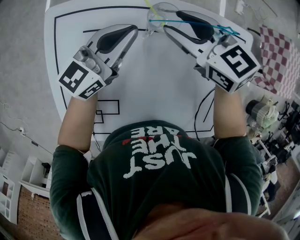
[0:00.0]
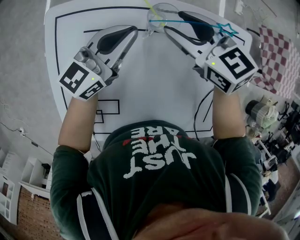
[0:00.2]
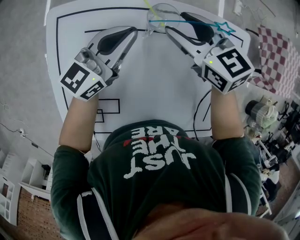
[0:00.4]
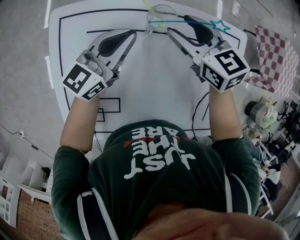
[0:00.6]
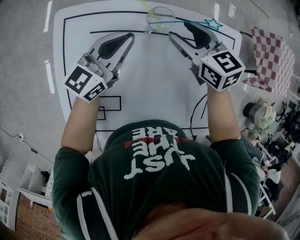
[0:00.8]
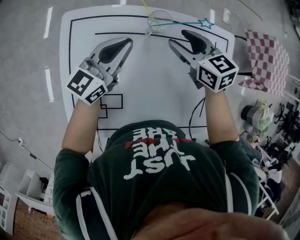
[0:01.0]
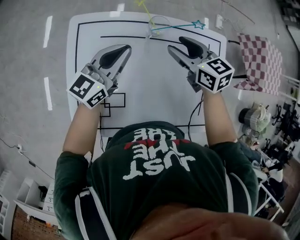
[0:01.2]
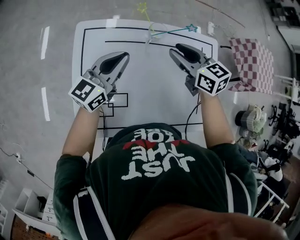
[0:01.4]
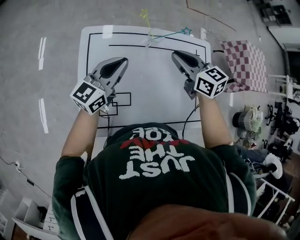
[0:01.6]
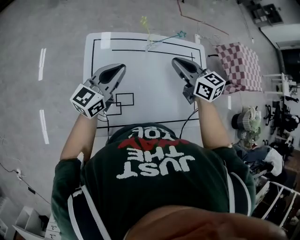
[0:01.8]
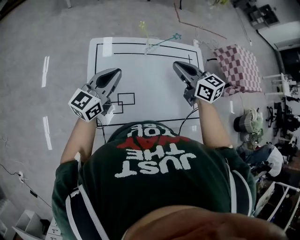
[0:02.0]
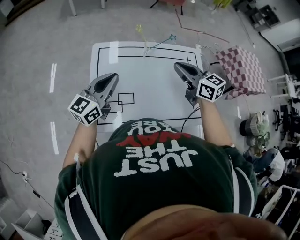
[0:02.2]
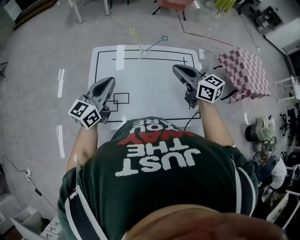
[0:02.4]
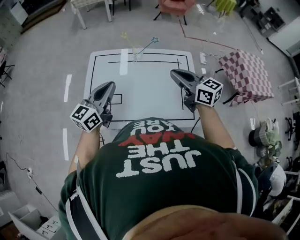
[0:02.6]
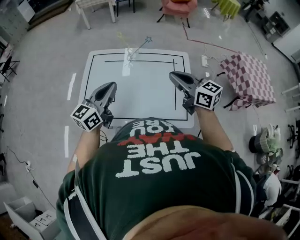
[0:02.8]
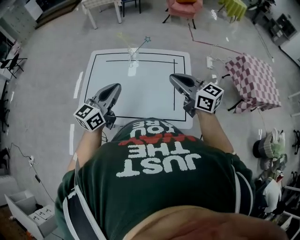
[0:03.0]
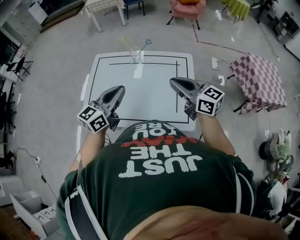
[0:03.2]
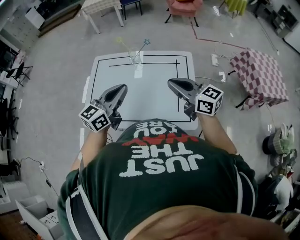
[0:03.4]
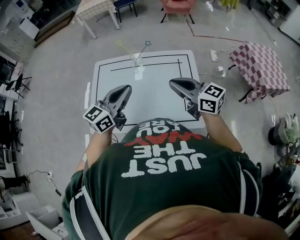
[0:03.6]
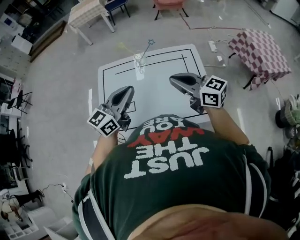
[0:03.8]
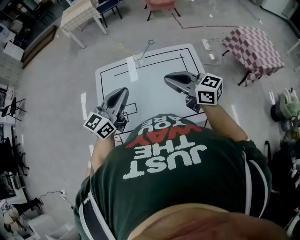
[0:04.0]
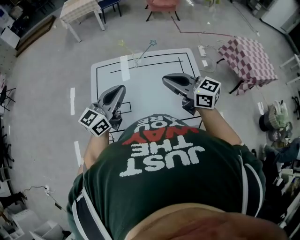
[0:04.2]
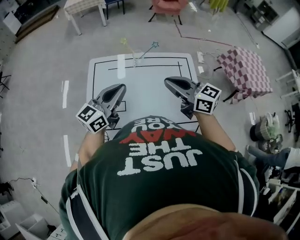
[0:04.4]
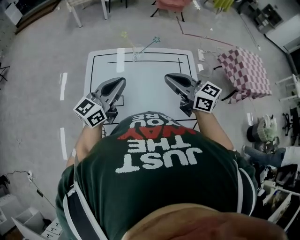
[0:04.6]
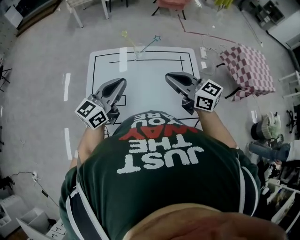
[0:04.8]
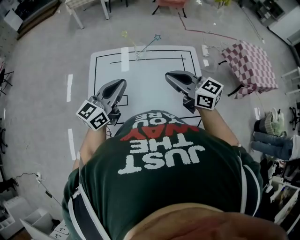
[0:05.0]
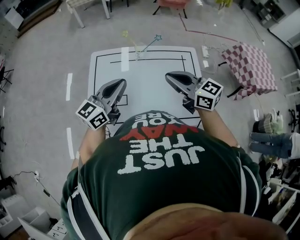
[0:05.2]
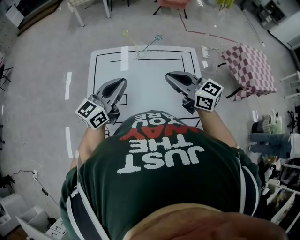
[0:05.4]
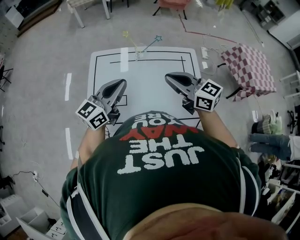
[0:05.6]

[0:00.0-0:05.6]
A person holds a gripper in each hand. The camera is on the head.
0:00.0 to 0:01.4: The right gripper is displaced backward and upward by some 15 cm. Meanwhile the left gripper travels upward, backward and to the left by approximately 15 cm.
0:01.4 to 0:02.8: The left gripper travels backward and upward by some 30 cm. The right gripper heads backward, upward and to the right, covering about 35 cm, changes its angle by about 20 degrees, and closes.
0:02.8 to 0:04.2: The right gripper shifts about 10 cm to the left, while the left gripper is displaced forward by some 5 cm.
0:04.2 to 0:05.6: There are only small adjustments of the grippers.

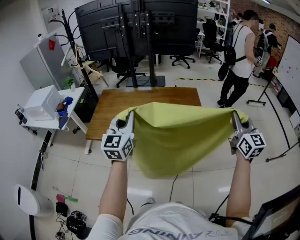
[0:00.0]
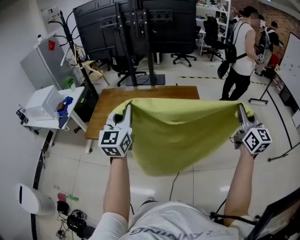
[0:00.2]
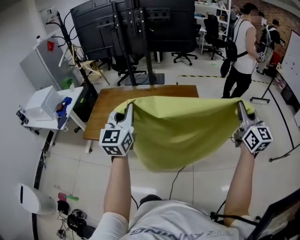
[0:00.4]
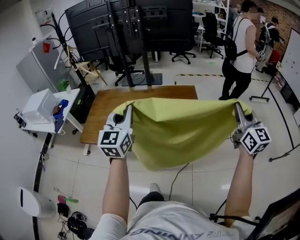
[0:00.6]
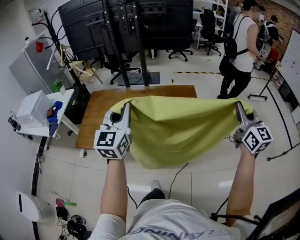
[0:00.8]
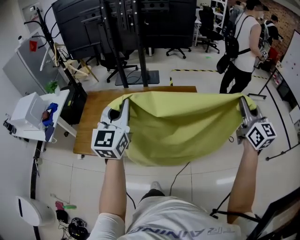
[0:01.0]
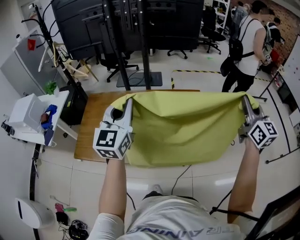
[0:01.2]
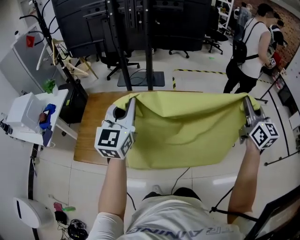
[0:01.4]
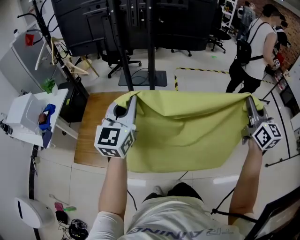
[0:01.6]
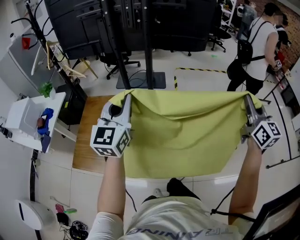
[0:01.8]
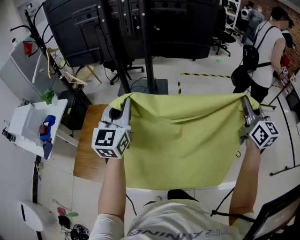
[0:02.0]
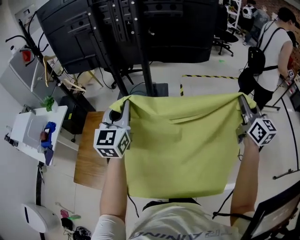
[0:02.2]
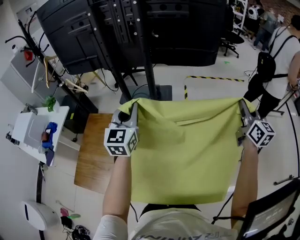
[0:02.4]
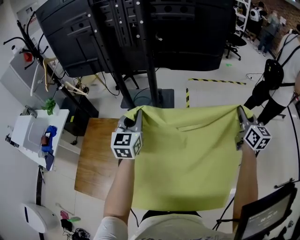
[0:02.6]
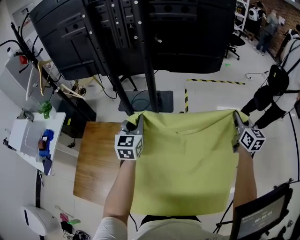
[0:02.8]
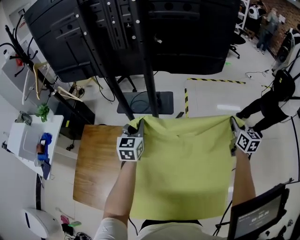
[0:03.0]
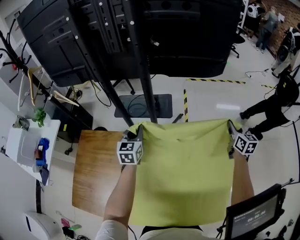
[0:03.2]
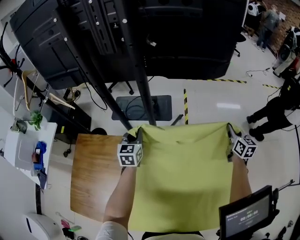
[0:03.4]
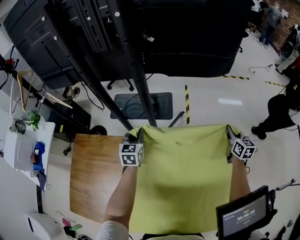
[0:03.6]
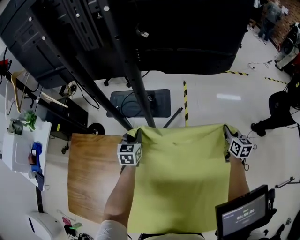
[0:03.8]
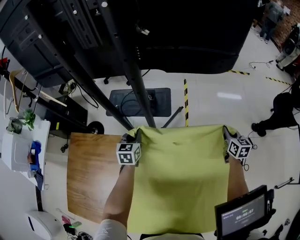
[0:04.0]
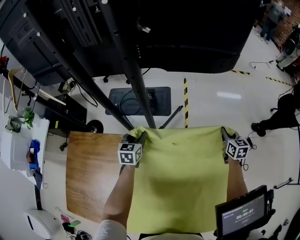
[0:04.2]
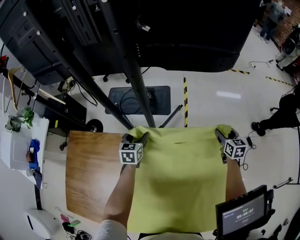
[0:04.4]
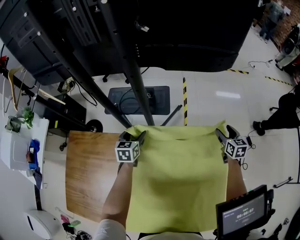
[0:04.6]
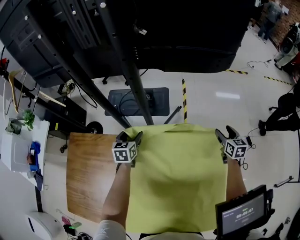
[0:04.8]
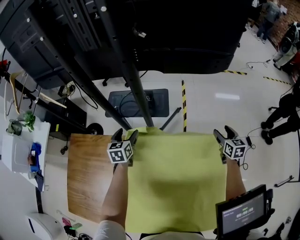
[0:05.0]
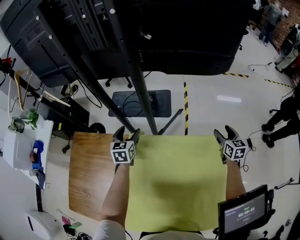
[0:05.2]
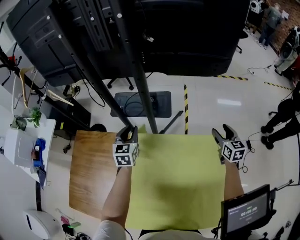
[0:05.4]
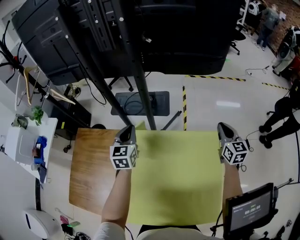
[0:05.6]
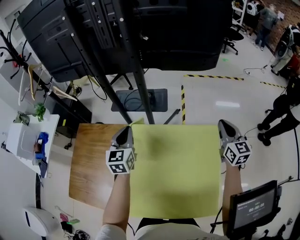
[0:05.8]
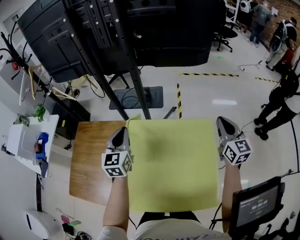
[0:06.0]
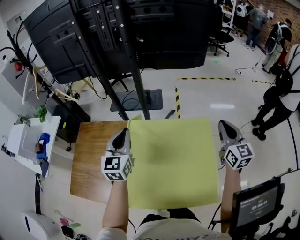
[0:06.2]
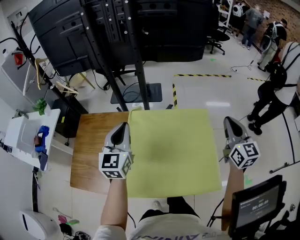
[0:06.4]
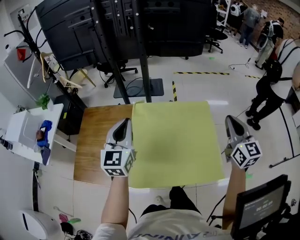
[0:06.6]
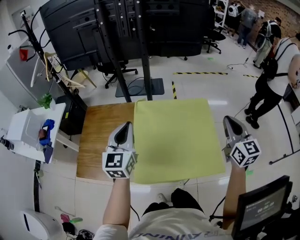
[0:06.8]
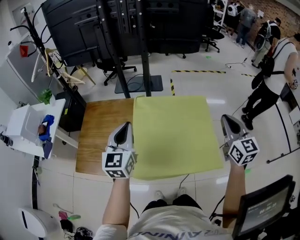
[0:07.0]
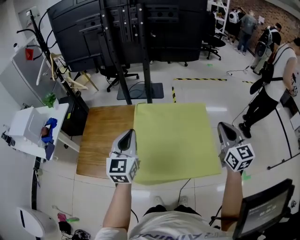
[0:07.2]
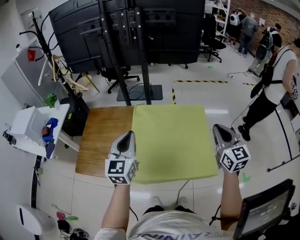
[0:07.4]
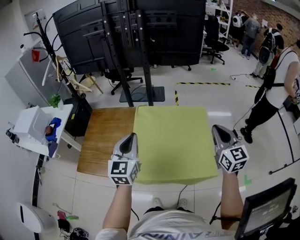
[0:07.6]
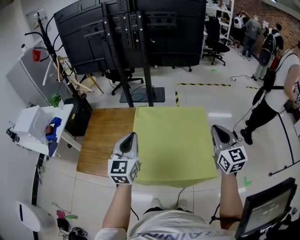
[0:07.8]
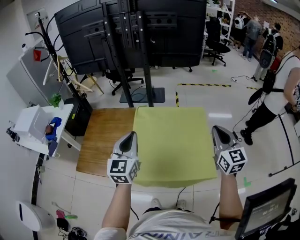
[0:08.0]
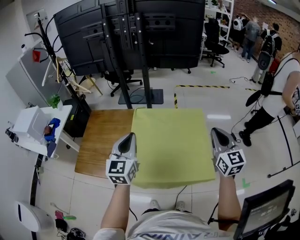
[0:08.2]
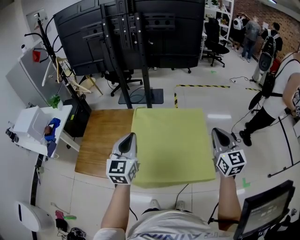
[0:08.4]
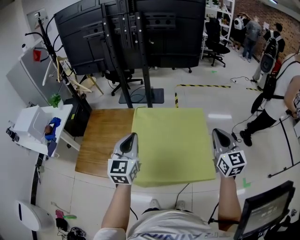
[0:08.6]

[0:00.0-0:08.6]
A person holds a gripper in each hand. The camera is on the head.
0:00.0 to 0:01.4: The two grippers go roughly 25 cm forward.
0:01.4 to 0:02.8: Both grippers travel together forward and downward, about 35 cm.
0:02.8 to 0:04.4: Both grippers move downward and forward, about 30 cm. The left gripper changes its angle by about 30 degrees, and opens up. The right gripper changes its angle by approximately 20 degrees, and opens its fingers.
0:04.4 to 0:05.8: Both grippers travel together upward and backward, roughly 25 cm. The left gripper rotates about 20 degrees, and closes, while the right gripper swivels about 20 degrees, and closes.
0:05.8 to 0:07.2: Both grippers travel together backward, about 30 cm.
0:07.2 to 0:08.6: The left gripper moves roughly 5 cm.

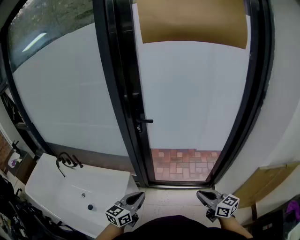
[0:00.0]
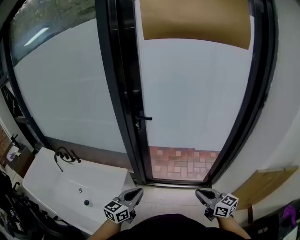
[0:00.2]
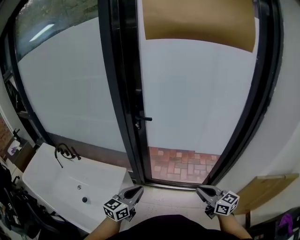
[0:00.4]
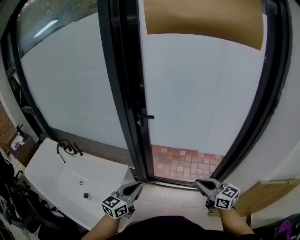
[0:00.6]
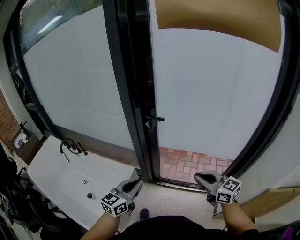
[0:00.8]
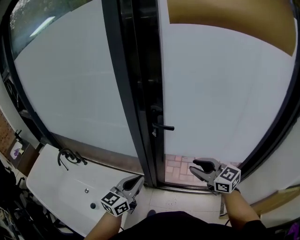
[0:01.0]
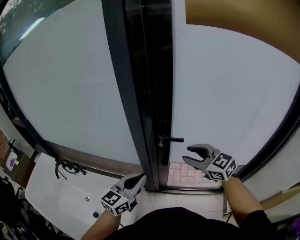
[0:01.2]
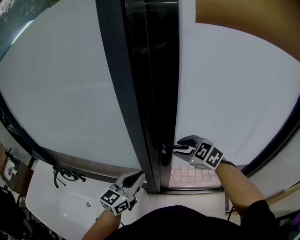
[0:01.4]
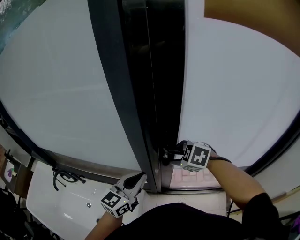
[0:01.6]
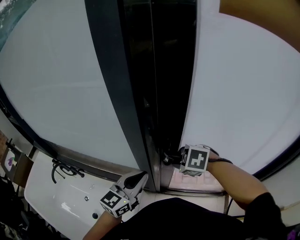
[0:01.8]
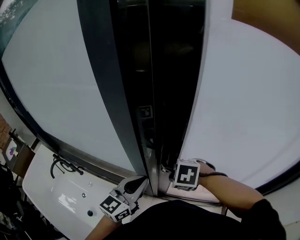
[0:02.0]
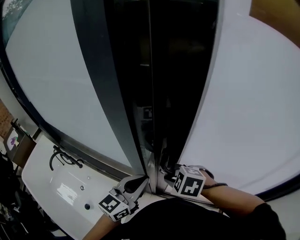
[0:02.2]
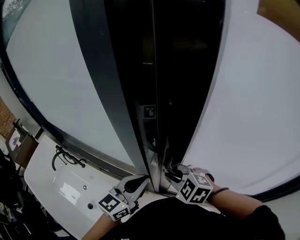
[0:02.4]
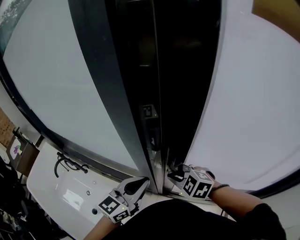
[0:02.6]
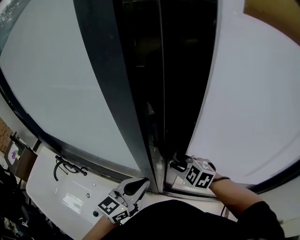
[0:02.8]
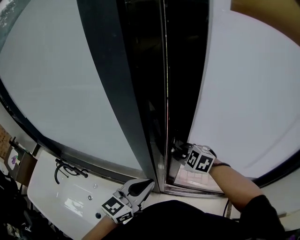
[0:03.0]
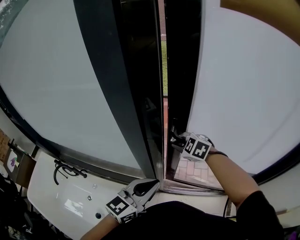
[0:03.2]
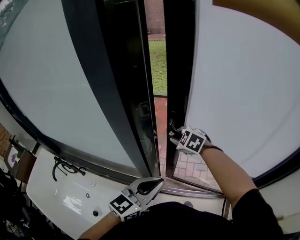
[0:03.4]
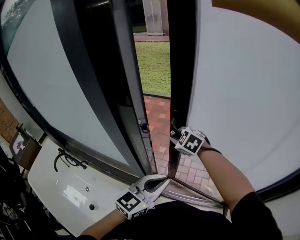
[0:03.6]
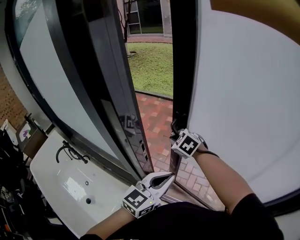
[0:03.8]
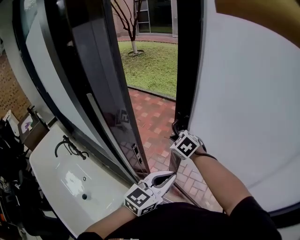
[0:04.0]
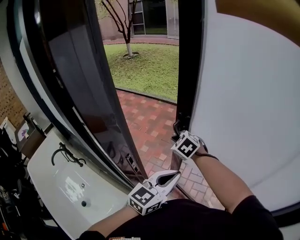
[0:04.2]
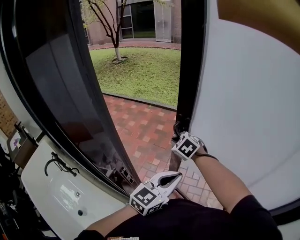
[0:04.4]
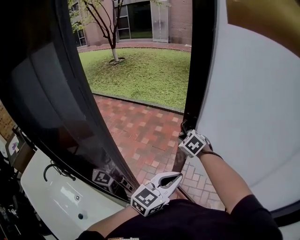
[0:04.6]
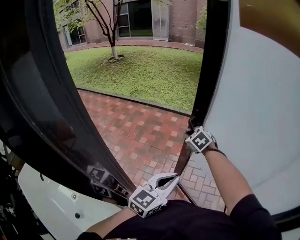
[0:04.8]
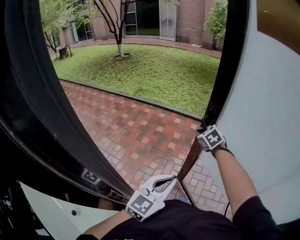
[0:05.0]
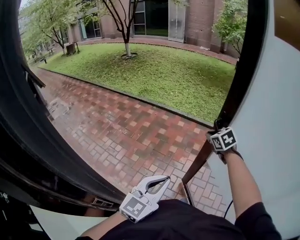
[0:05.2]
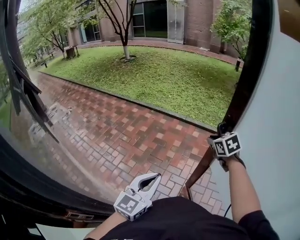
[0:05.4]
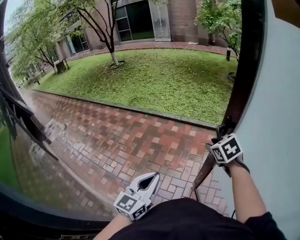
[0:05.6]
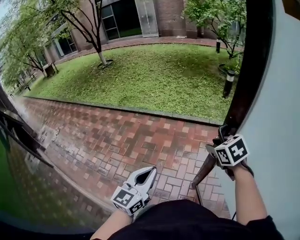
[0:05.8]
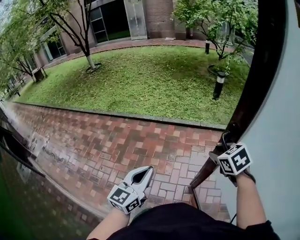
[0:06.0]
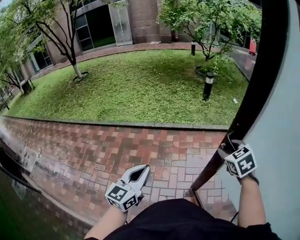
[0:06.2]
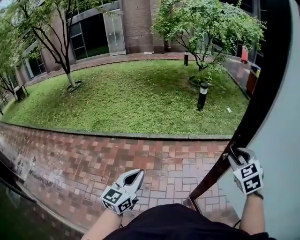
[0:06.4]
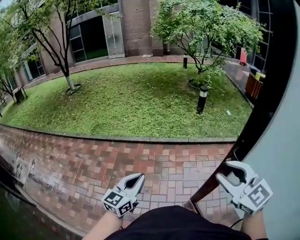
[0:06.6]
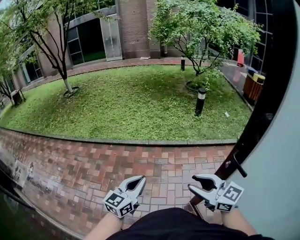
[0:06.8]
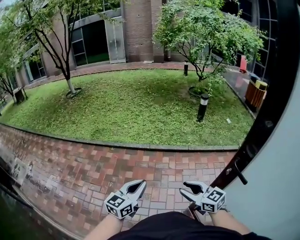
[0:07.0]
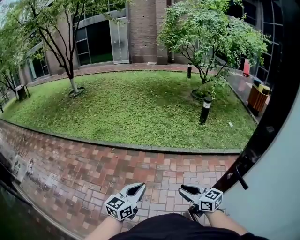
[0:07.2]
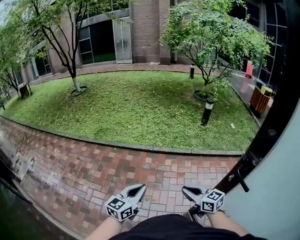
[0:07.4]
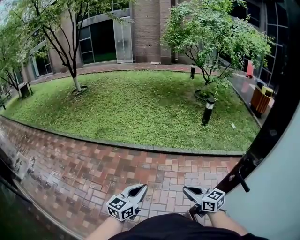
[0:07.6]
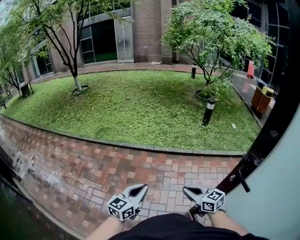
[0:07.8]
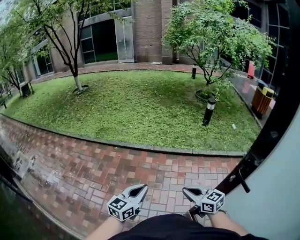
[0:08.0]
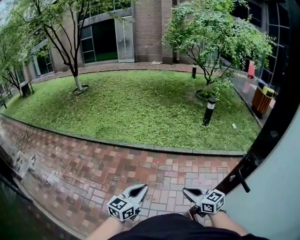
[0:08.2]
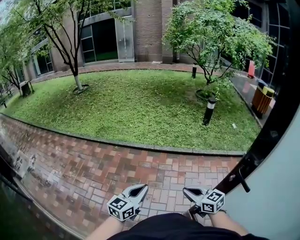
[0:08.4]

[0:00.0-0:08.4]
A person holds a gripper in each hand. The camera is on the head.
0:00.0 to 0:01.4: The left gripper moves forward, some 35 cm. Meanwhile the right gripper heads forward and to the left, covering some 50 cm, swivels roughly 50 degrees, and opens up.
0:01.4 to 0:02.8: The right gripper is displaced downward by about 5 cm, and closes.
0:02.8 to 0:04.2: The right gripper goes about 25 cm forward, while the left gripper shifts approximately 30 cm to the right and forward.
0:04.2 to 0:05.6: The right gripper travels forward and to the right by roughly 50 cm, rotates roughly 30 degrees, and opens. The left gripper moves forward, some 35 cm.
0:05.6 to 0:07.0: The left gripper moves some 30 cm, and swivels about 20 degrees. Meanwhile the right gripper travels upward and back again, about 15 cm each way, and tilts its fingers some 40 degrees upward.
0:07.0 to 0:08.4: The right gripper closes up.

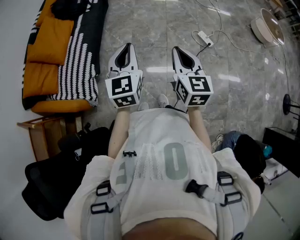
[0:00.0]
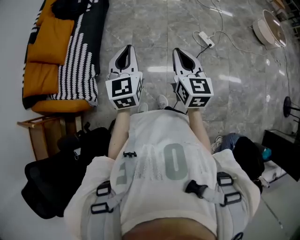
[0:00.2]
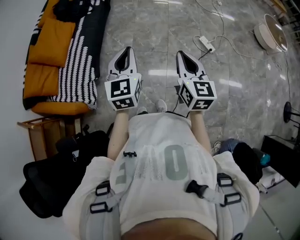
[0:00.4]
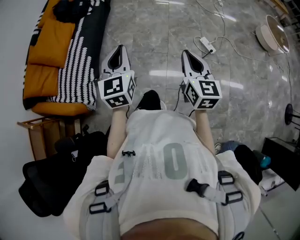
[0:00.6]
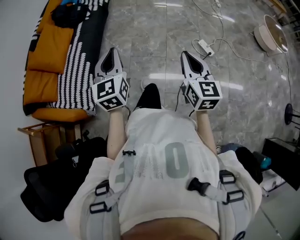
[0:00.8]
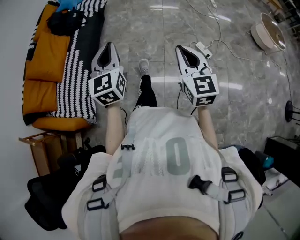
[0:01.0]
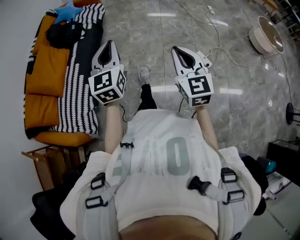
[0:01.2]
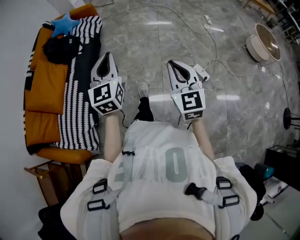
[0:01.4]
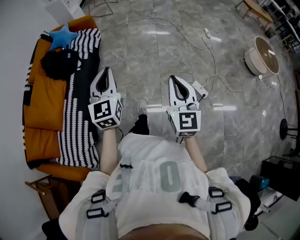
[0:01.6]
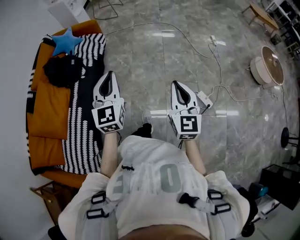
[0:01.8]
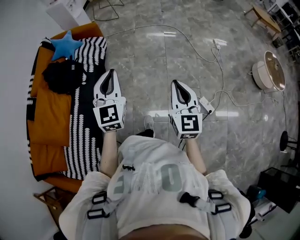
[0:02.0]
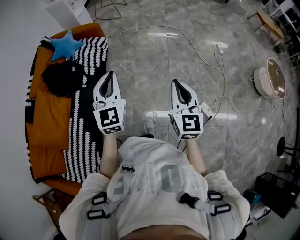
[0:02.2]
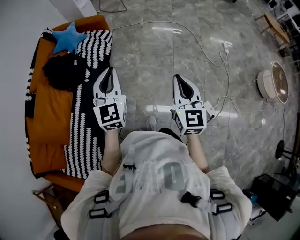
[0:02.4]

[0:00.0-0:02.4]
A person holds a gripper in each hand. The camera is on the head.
0:00.0 to 0:01.2: The right gripper travels forward and to the right by some 20 cm; the left gripper heads forward, covering roughly 20 cm.
0:01.2 to 0:02.4: Both grippers are carried forward, approximately 50 cm.
